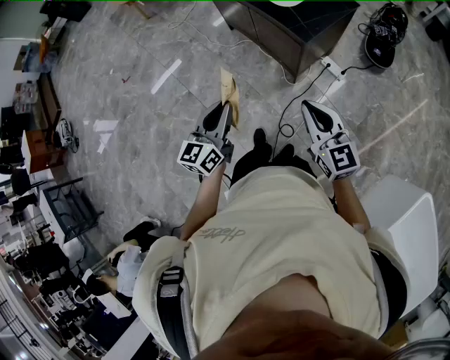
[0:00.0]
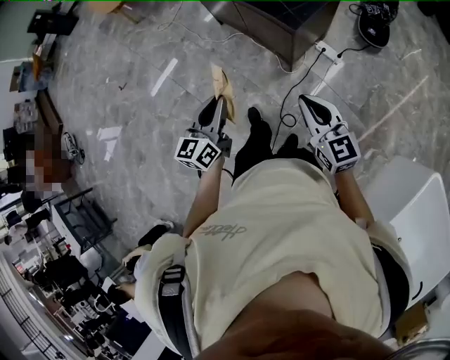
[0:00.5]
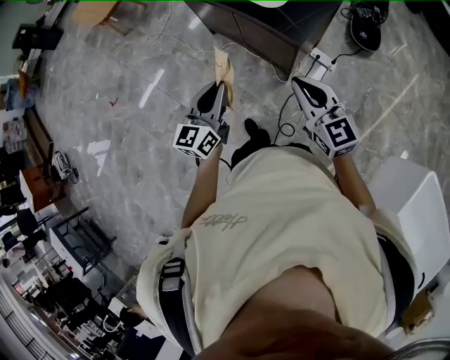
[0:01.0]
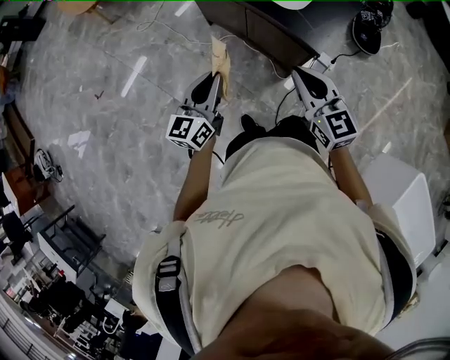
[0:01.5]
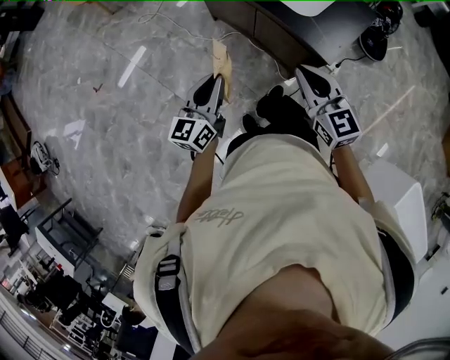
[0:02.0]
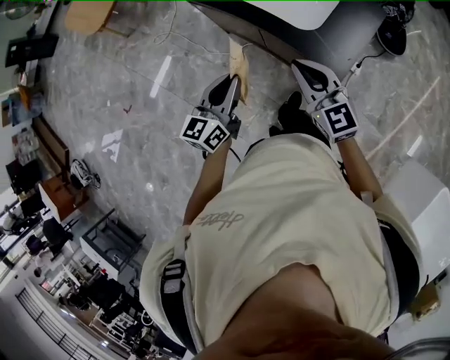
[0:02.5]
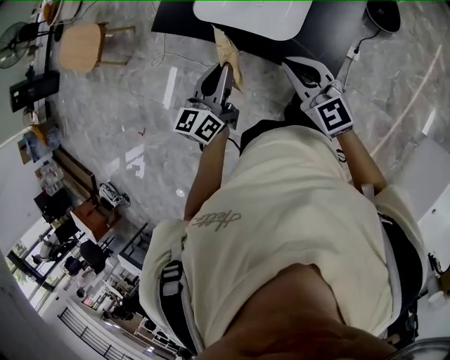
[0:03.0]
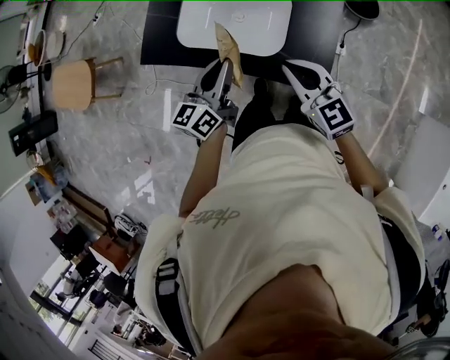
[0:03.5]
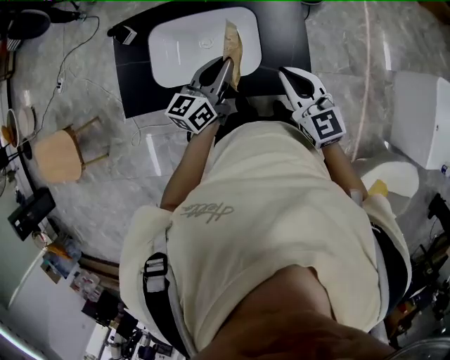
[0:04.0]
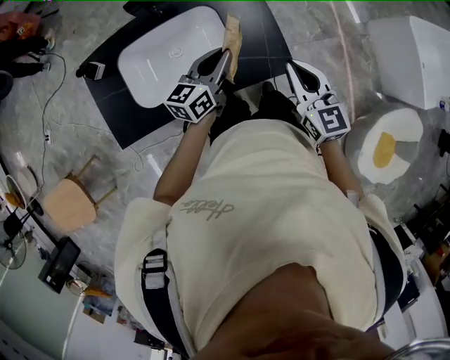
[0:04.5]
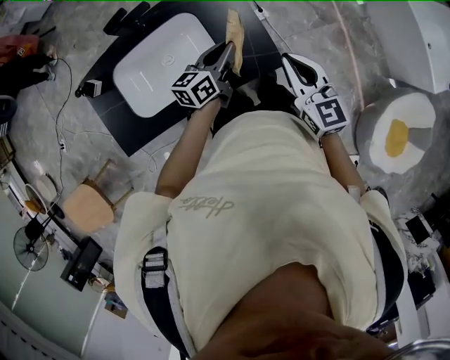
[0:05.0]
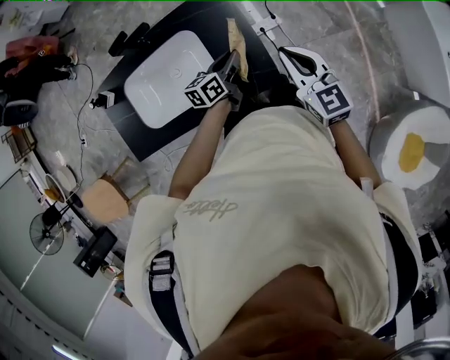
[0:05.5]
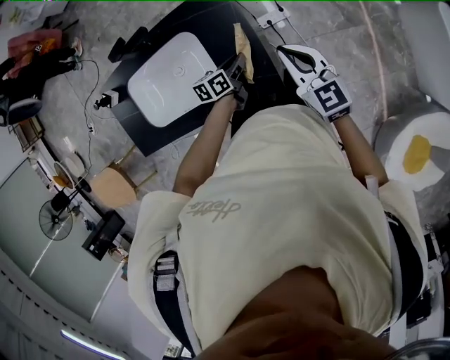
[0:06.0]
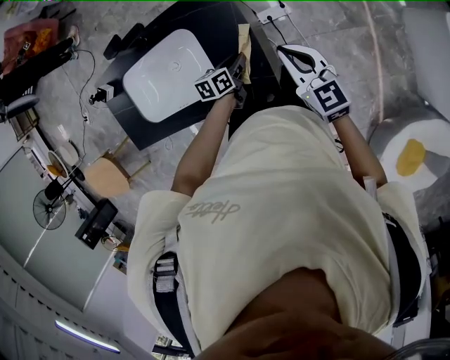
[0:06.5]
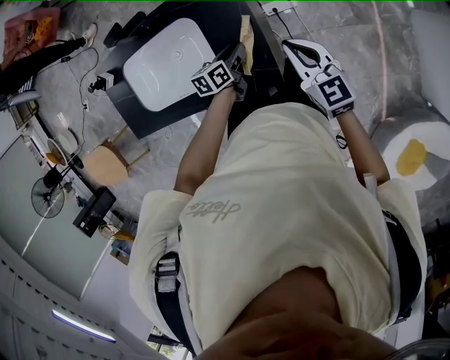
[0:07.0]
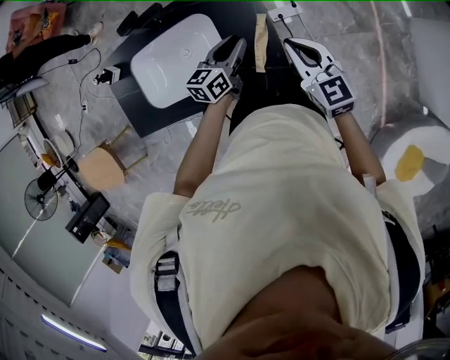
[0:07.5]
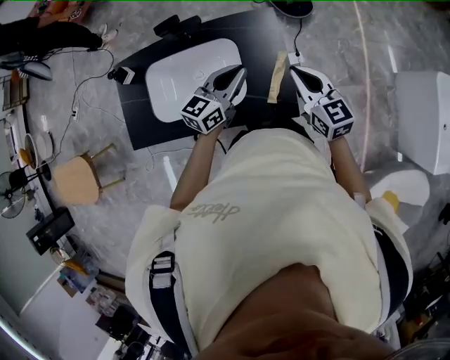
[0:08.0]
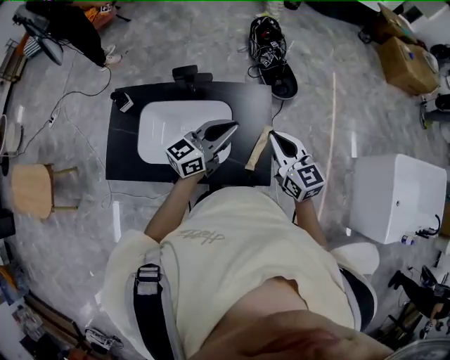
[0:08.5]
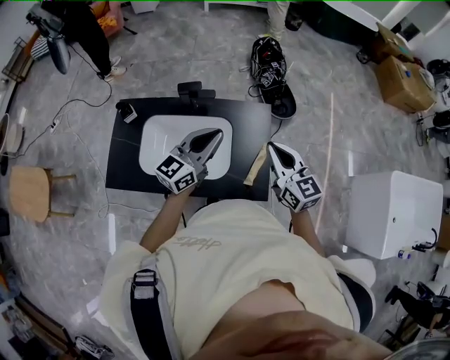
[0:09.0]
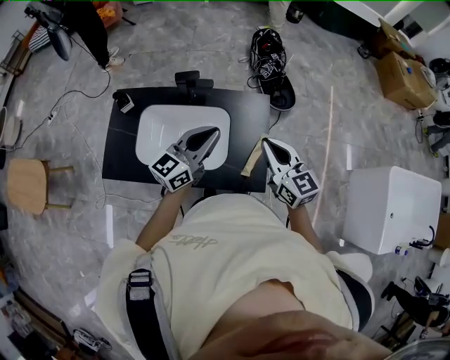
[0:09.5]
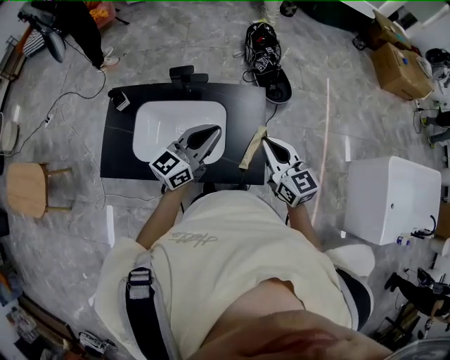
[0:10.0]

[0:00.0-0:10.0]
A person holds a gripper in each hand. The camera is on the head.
0.0 to 2.0 s: Both grippers move forward and to the left, approximately 40 cm.
2.0 to 4.0 s: The right gripper ends up about 35 cm from where it was, and changes its angle by some 40 degrees. Meanwhile the left gripper shifts by some 50 cm, and turns by approximately 60 degrees.
4.0 to 6.0 s: The right gripper goes approximately 25 cm to the right and forward, while the left gripper moves to the right, downward and forward, roughly 35 cm, and rotates some 40 degrees.
6.0 to 8.0 s: The left gripper shifts about 25 cm upward and to the left, and turns by about 40 degrees; the right gripper heads to the left and upward, covering about 10 cm.
8.0 to 10.0 s: Both grippers travel together upward and to the left, about 10 cm.

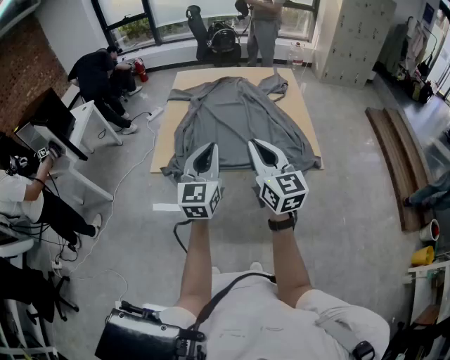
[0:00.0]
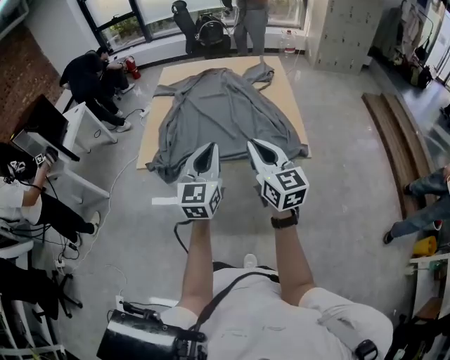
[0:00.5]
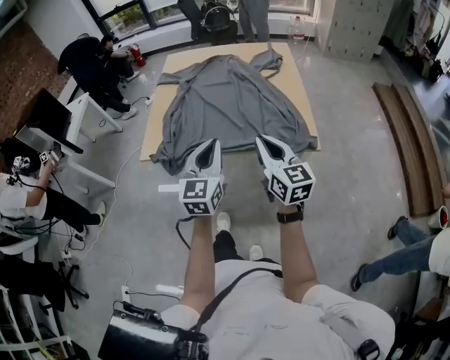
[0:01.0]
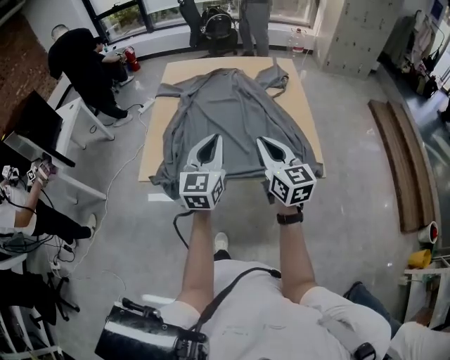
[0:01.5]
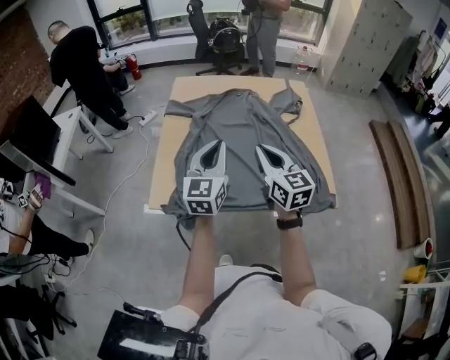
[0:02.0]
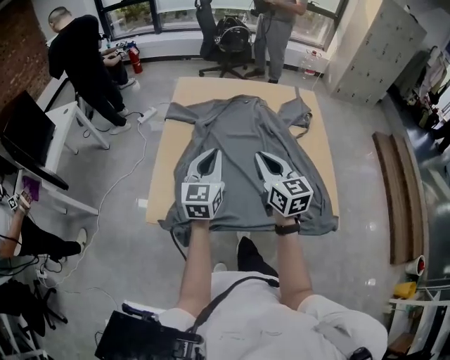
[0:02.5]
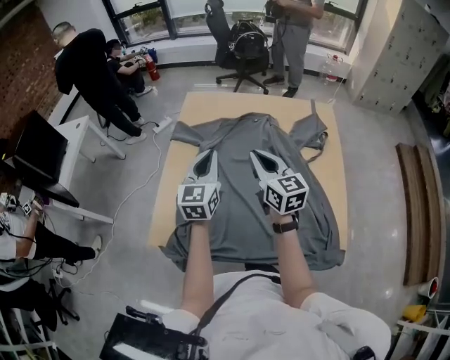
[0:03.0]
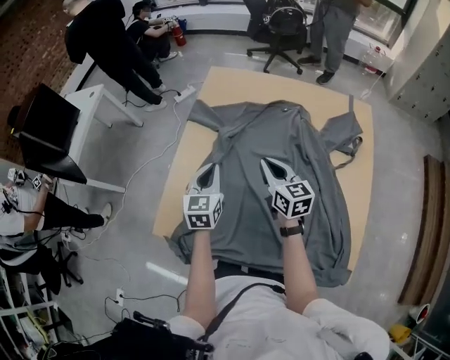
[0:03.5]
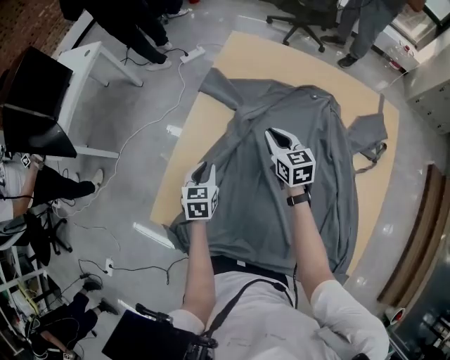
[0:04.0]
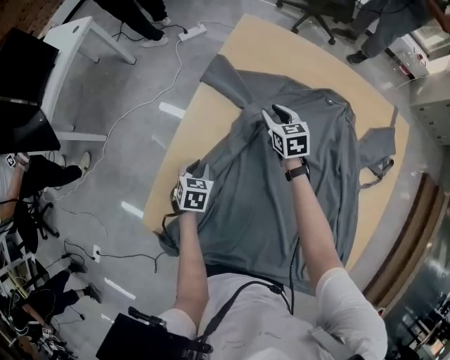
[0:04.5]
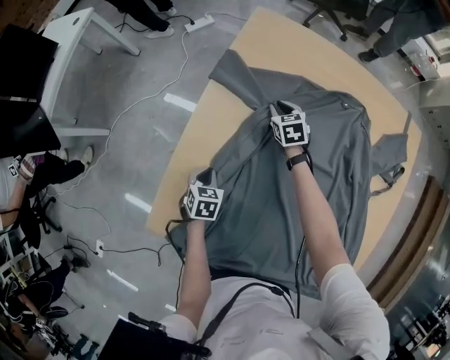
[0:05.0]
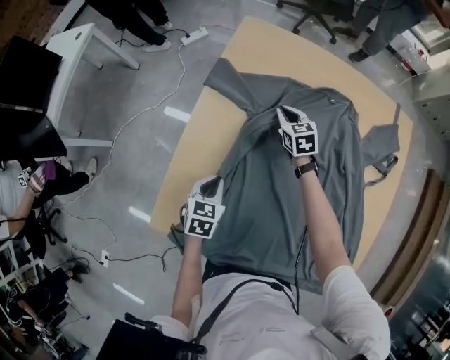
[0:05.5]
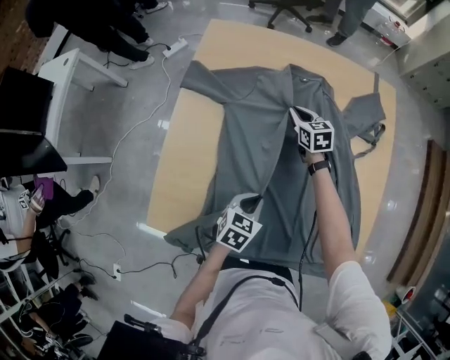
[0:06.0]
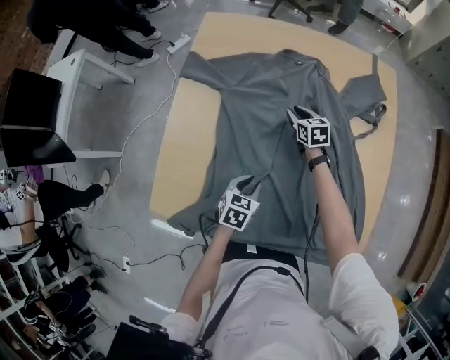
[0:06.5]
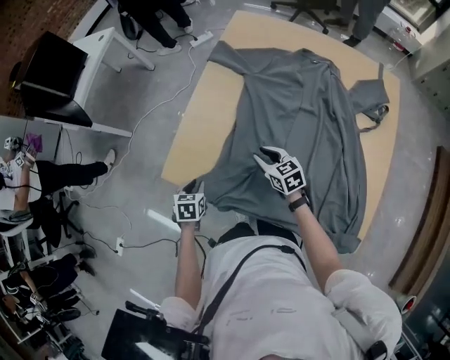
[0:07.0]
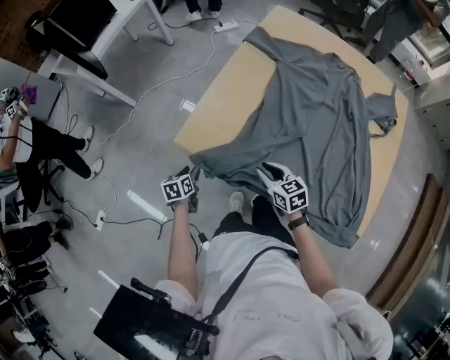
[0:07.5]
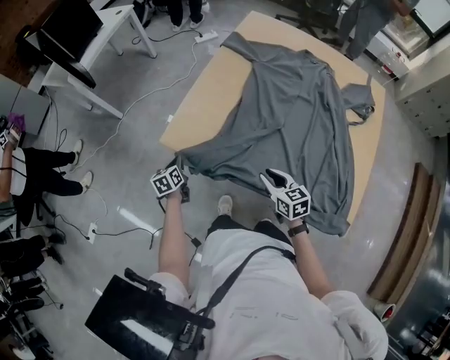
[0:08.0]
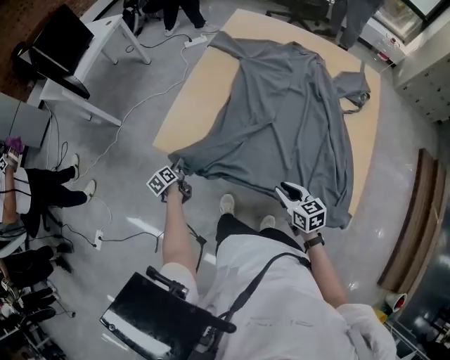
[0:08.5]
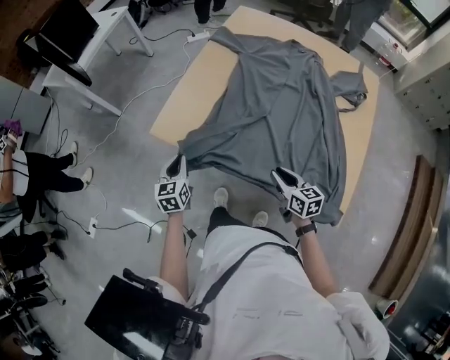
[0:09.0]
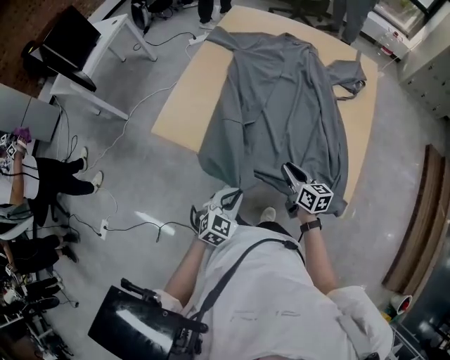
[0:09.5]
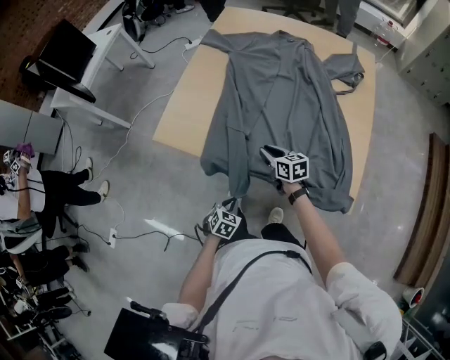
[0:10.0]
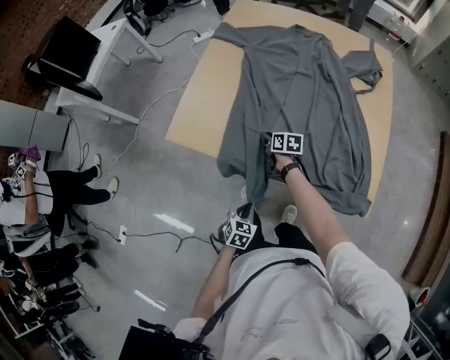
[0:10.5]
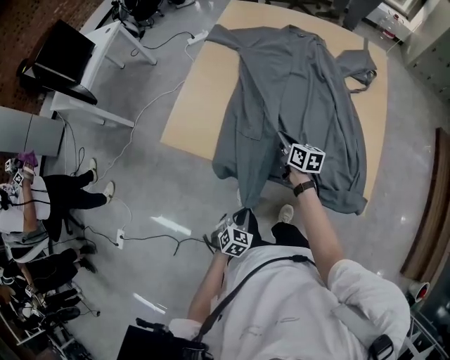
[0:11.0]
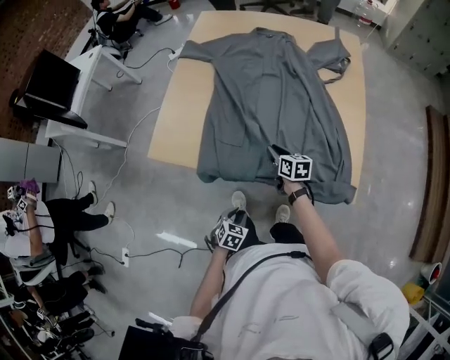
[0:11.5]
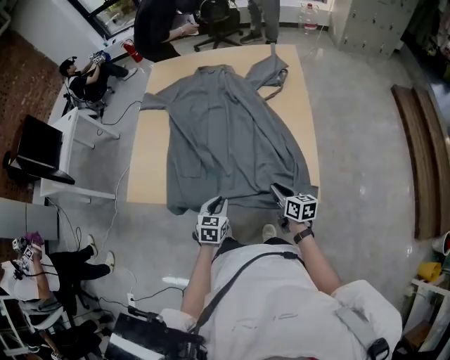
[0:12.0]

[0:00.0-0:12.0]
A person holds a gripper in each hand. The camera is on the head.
0.0 to 2.0 s: Both grippers travel together forward, some 25 cm.
2.0 to 4.0 s: The left gripper shifts about 30 cm downward, and points its fingers roughly 40 degrees further downward. Meanwhile the right gripper moves some 50 cm, and changes its angle by some 30 degrees.
4.0 to 6.0 s: The left gripper goes downward and returns, some 15 cm each way, and changes its angle by some 40 degrees. The right gripper ends up some 15 cm from where it was.
6.0 to 8.0 s: The left gripper ends up approximately 40 cm from where it was, rotates some 60 degrees, and opens, then closes again. Meanwhile the right gripper changes place by some 50 cm, and changes its angle by approximately 20 degrees.
8.0 to 10.0 s: The right gripper travels to the right by approximately 5 cm. The left gripper travels backward and to the right by approximately 35 cm, twists approximately 50 degrees clockwise, seen from behind, and opens, then closes again.
10.0 to 12.0 s: The right gripper heads to the right and backward, covering about 25 cm, and turns by approximately 30 degrees. The left gripper moves to the right, upward and forward, about 20 cm.

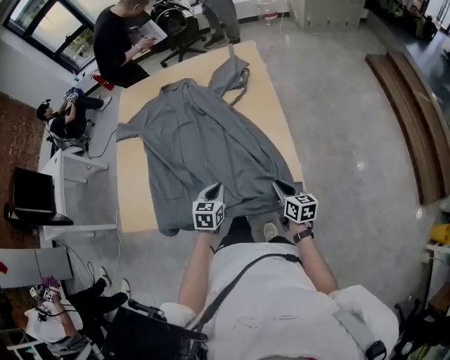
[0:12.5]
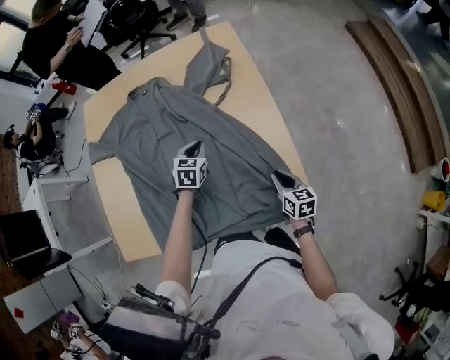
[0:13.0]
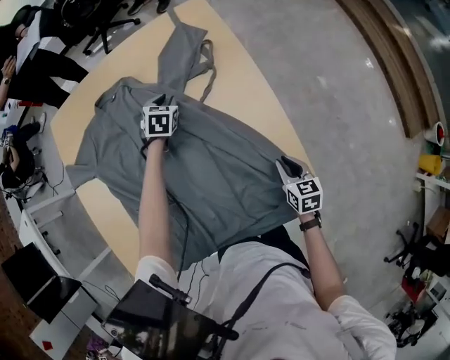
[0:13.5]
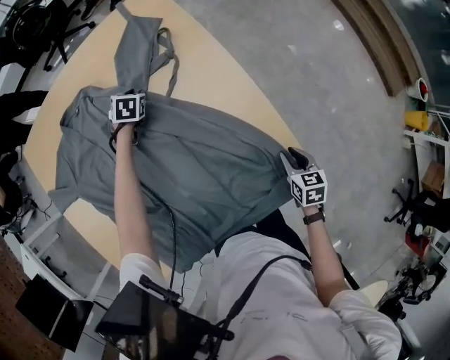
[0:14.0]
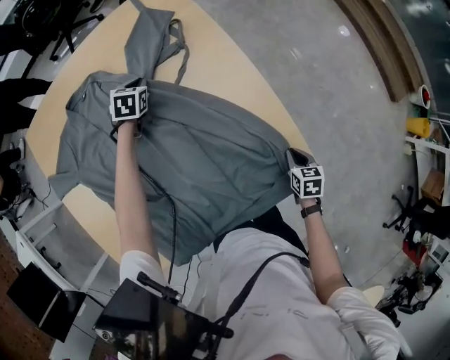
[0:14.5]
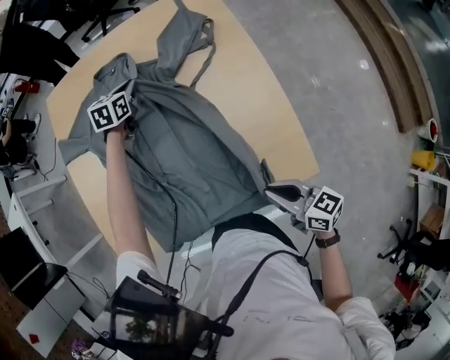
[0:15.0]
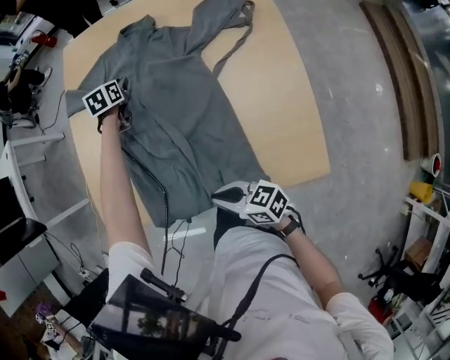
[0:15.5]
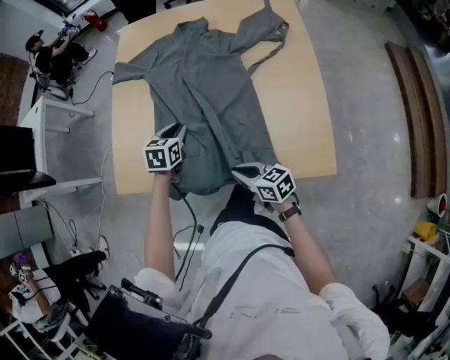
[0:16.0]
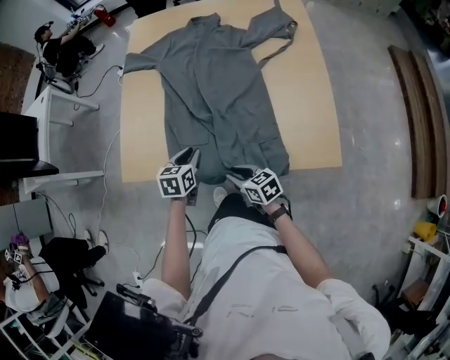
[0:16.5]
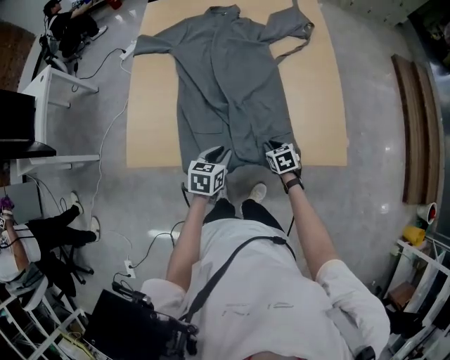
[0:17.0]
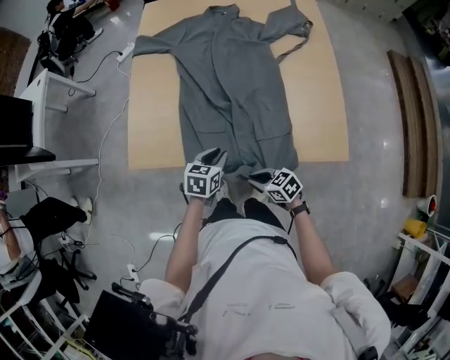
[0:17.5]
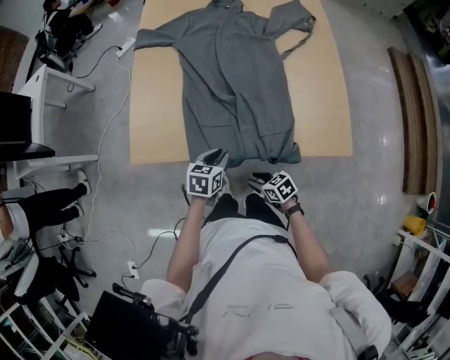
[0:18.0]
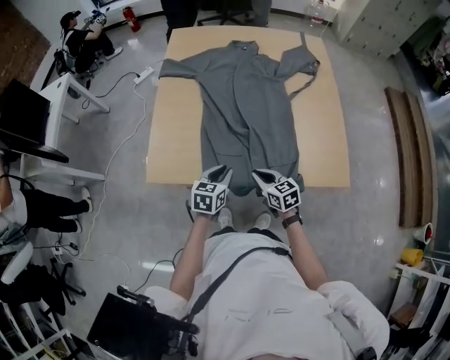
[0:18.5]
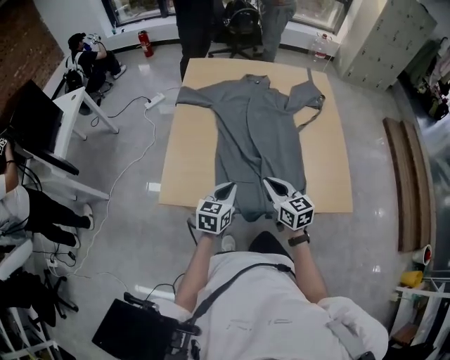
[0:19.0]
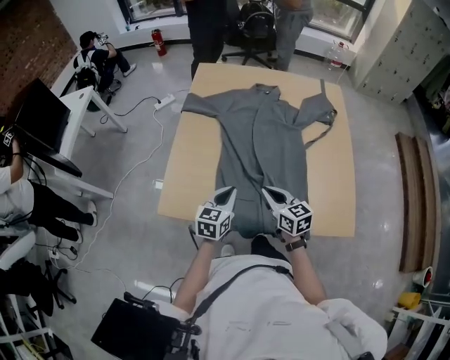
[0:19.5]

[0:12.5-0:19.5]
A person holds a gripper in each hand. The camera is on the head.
12.5 to 14.5 s: The left gripper moves roughly 50 cm, turns by roughly 30 degrees, and opens, then closes again. Meanwhile the right gripper goes approximately 10 cm downward, and tilts its fingers roughly 30 degrees downward.
14.5 to 16.0 s: The left gripper moves up and down over about 10 cm, changing direction 2 times, and rotates approximately 30 degrees, while the right gripper ends up roughly 35 cm from where it was, and tilts its fingers approximately 40 degrees upward.
16.0 to 17.5 s: The left gripper is displaced backward by about 15 cm; the right gripper goes left and right, some 15 cm each way, reversing 2 times, and rotates roughly 20 degrees.
17.5 to 19.5 s: The right gripper goes about 25 cm forward and upward, and turns by roughly 30 degrees; the left gripper moves forward, upward and to the left, about 15 cm, rotates some 20 degrees, and closes up.
